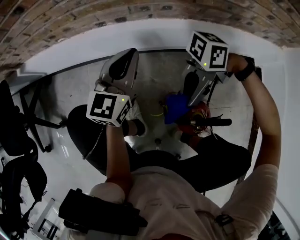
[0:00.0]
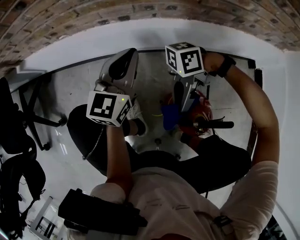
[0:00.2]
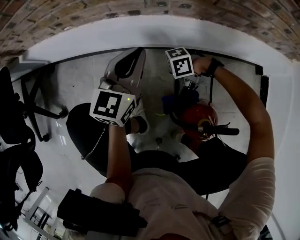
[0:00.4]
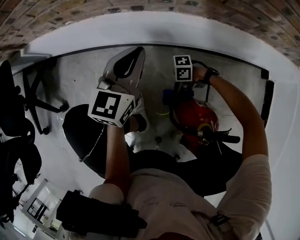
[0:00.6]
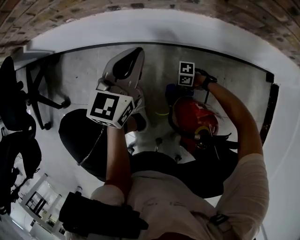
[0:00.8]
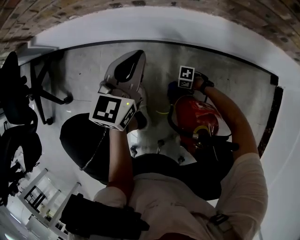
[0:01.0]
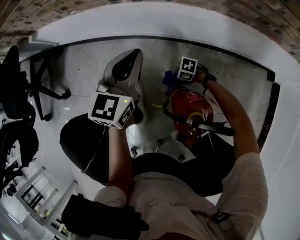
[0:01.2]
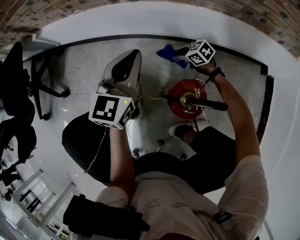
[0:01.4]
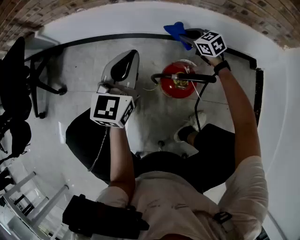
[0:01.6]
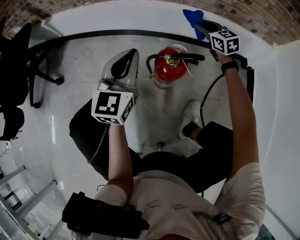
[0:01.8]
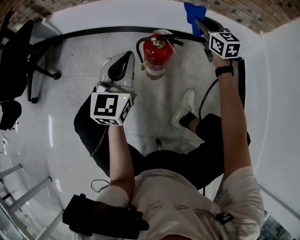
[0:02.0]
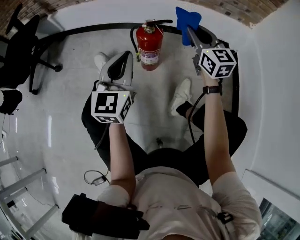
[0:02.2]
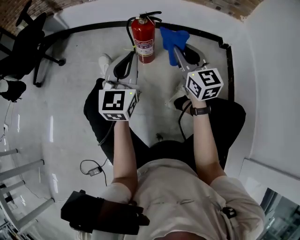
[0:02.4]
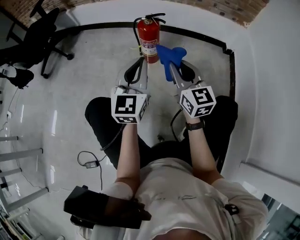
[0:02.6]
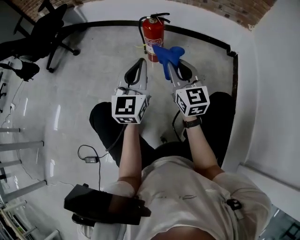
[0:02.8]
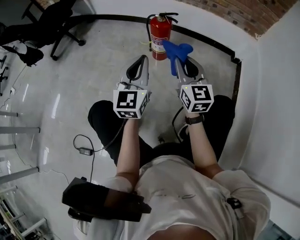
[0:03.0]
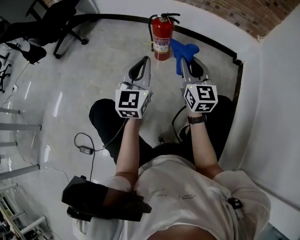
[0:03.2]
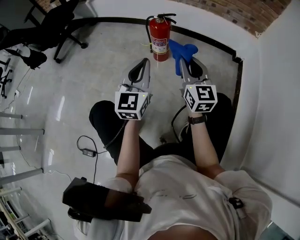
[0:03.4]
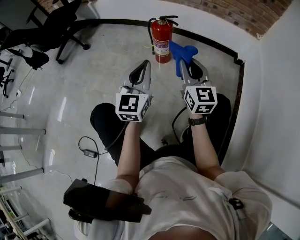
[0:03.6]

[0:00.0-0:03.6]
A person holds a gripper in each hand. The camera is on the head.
0:00.0 to 0:01.8: The left gripper ends up roughly 25 cm from where it was; the right gripper goes downward and returns, about 50 cm each way, and changes its angle by roughly 100 degrees.
0:01.8 to 0:03.6: The pair of grippers is taken backward, some 50 cm. The right gripper turns by some 30 degrees.

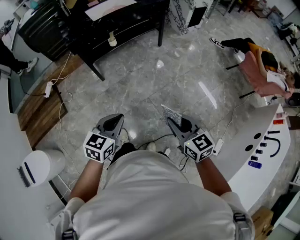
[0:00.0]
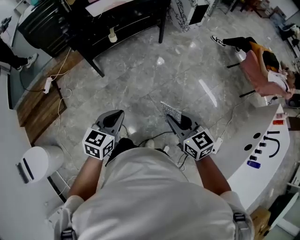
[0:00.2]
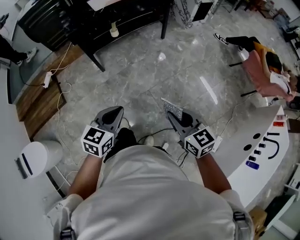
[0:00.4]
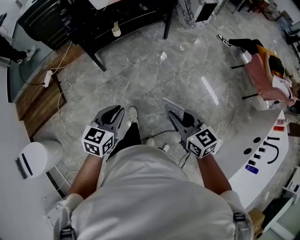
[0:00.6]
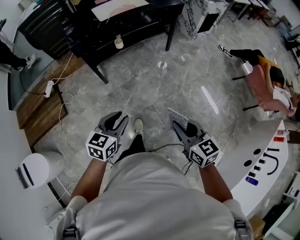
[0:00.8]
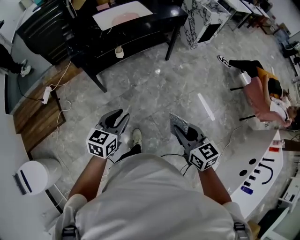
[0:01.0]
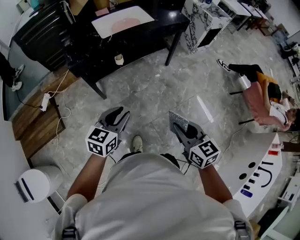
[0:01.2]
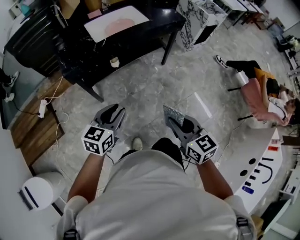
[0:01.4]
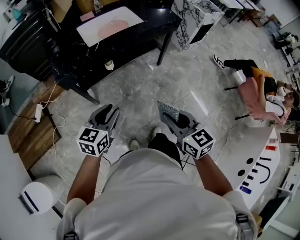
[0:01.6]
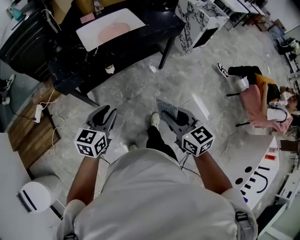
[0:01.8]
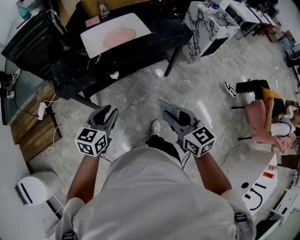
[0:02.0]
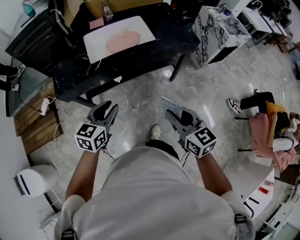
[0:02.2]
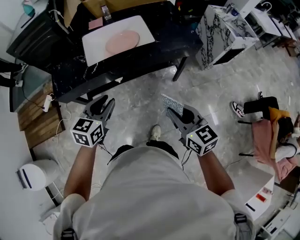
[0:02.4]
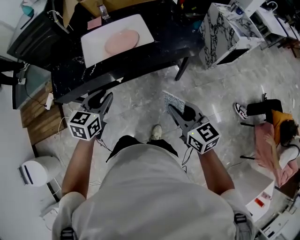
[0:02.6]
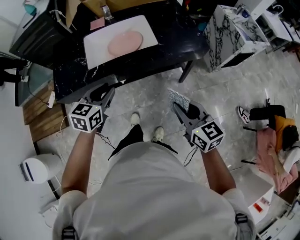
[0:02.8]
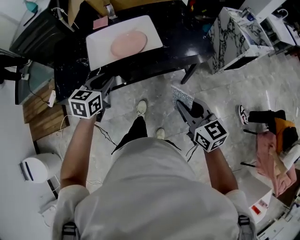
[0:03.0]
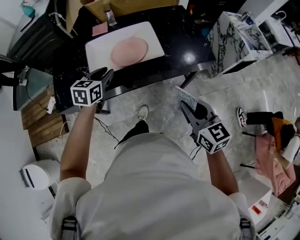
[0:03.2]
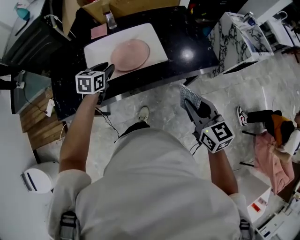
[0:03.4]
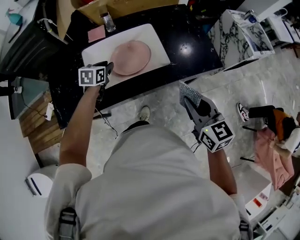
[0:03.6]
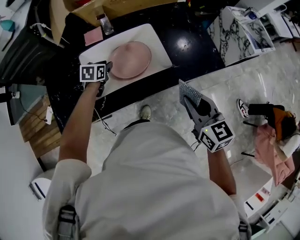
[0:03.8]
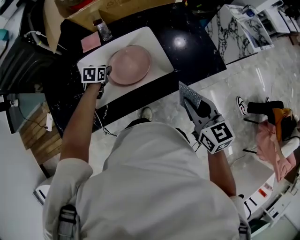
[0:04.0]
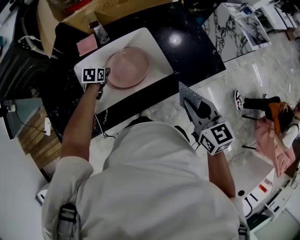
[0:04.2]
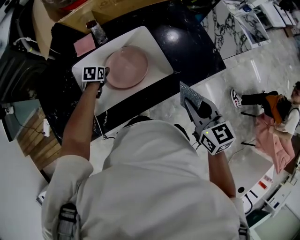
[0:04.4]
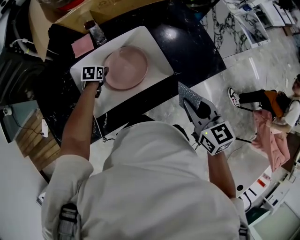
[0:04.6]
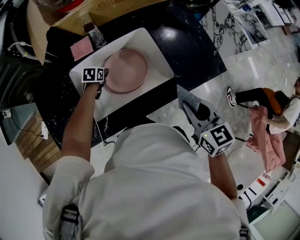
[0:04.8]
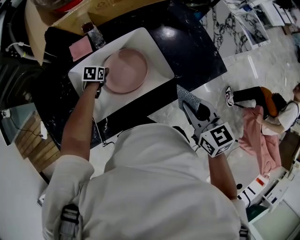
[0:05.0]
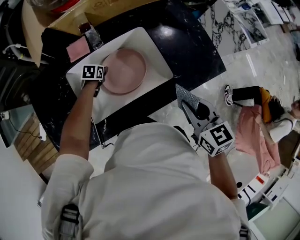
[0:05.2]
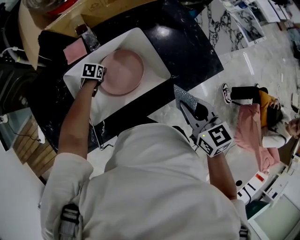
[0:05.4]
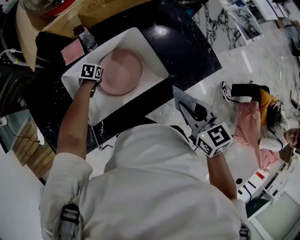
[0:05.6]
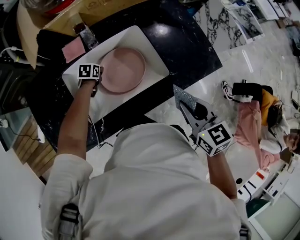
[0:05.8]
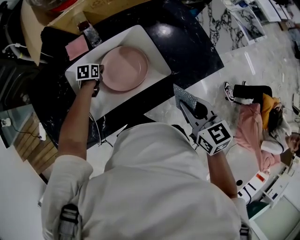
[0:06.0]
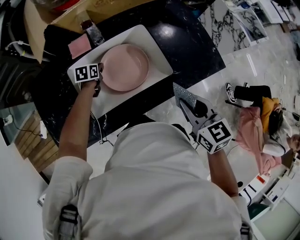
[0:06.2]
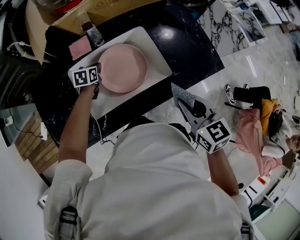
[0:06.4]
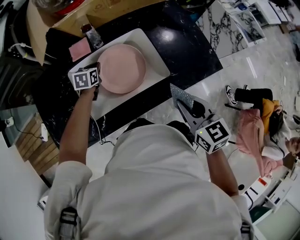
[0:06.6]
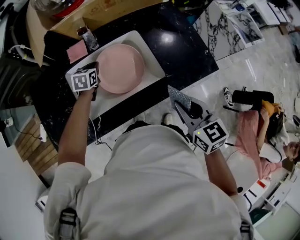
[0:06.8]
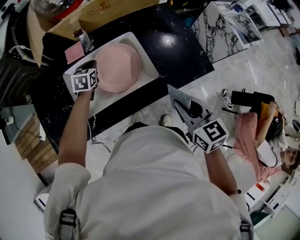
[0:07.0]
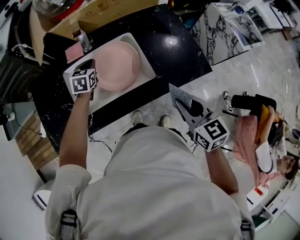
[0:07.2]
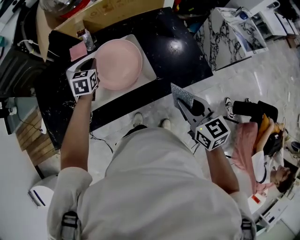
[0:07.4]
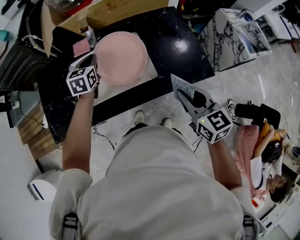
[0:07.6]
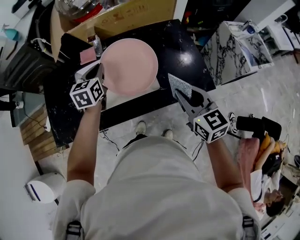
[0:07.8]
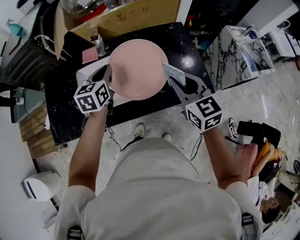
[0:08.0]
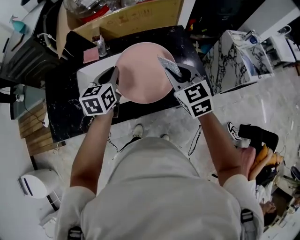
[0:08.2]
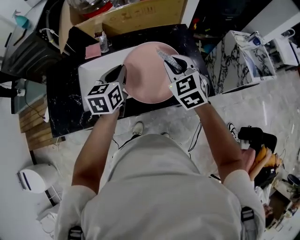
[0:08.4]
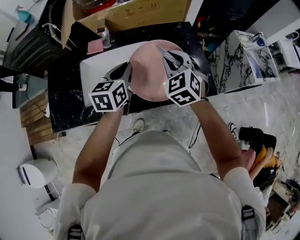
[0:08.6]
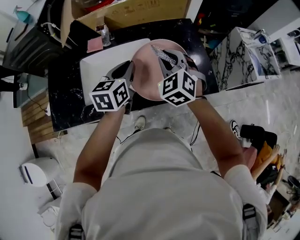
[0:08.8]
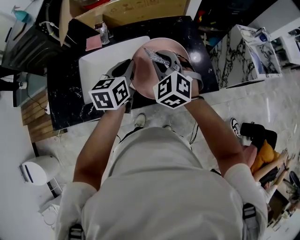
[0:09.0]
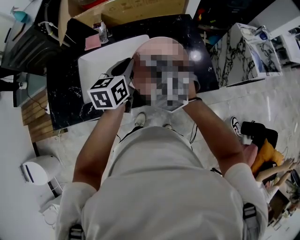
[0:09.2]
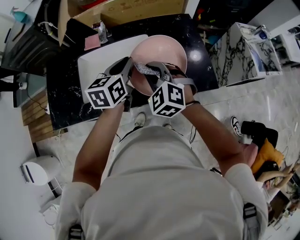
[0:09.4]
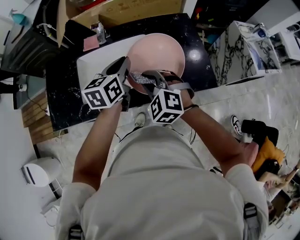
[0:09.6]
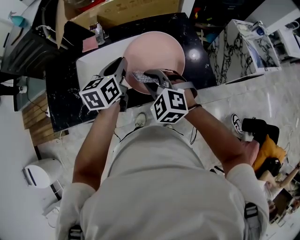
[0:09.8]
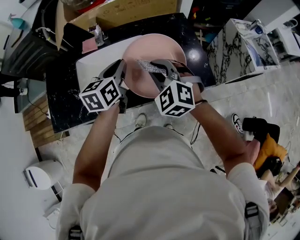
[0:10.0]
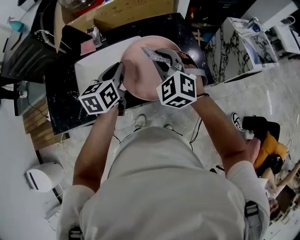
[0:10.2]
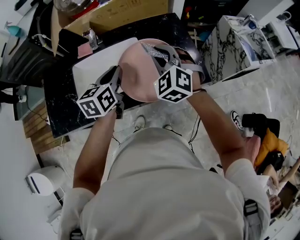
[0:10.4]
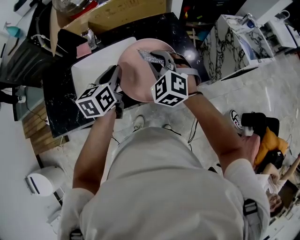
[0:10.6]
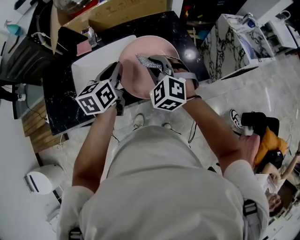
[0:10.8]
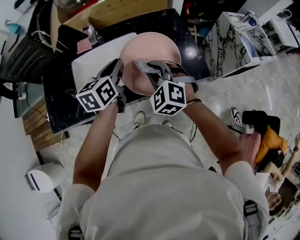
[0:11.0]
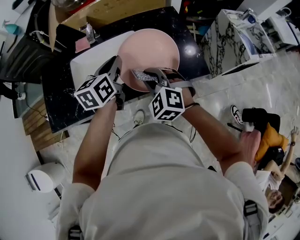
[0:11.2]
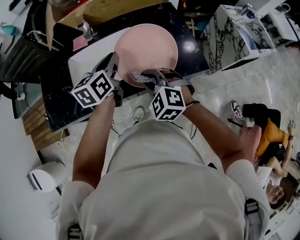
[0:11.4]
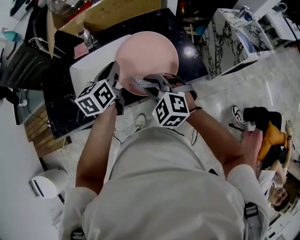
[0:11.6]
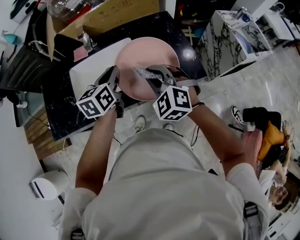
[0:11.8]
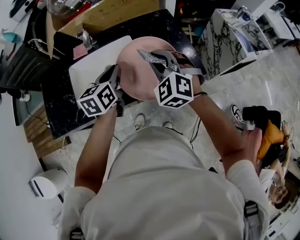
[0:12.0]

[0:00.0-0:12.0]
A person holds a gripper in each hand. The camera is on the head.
0:00.0 to 0:01.6: The two grippers go roughly 40 cm forward. The left gripper opens its fingers.
0:01.6 to 0:03.0: The left gripper heads forward, covering some 35 cm, and changes its angle by roughly 20 degrees, while the right gripper travels forward and to the right by approximately 40 cm.
0:03.0 to 0:04.4: The left gripper shifts approximately 40 cm forward and downward, and swivels approximately 30 degrees. Meanwhile the right gripper is displaced forward by some 20 cm.
0:04.4 to 0:06.0: The left gripper closes.
0:06.0 to 0:07.6: The left gripper goes approximately 25 cm upward, and turns by some 40 degrees. Meanwhile the right gripper moves some 10 cm.
0:07.6 to 0:09.0: The right gripper moves forward and to the left, about 15 cm, and rotates around the line of its fingers by roughly 50 degrees, counterclockwise from behind. The left gripper moves to the right, backward and upward, roughly 15 cm.

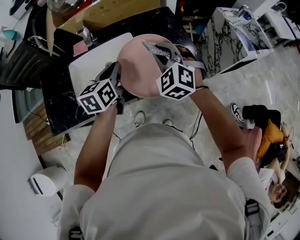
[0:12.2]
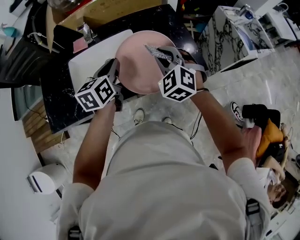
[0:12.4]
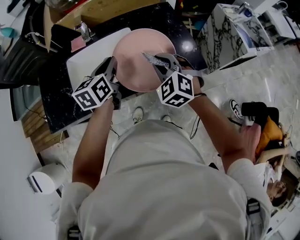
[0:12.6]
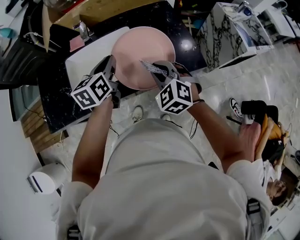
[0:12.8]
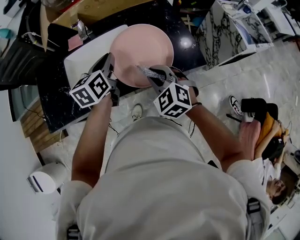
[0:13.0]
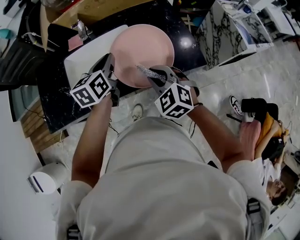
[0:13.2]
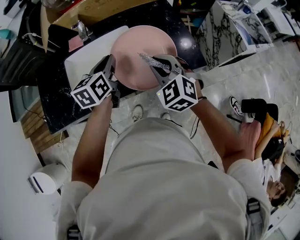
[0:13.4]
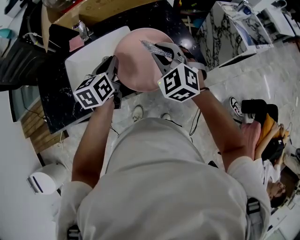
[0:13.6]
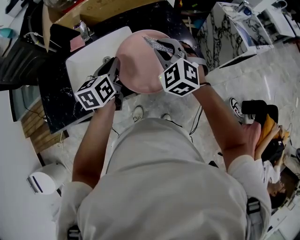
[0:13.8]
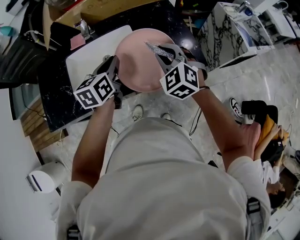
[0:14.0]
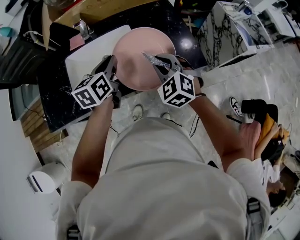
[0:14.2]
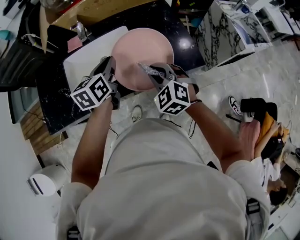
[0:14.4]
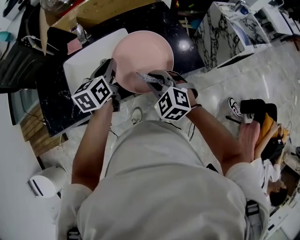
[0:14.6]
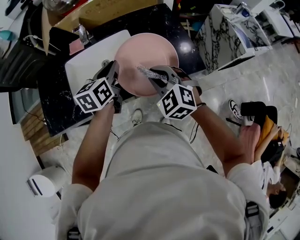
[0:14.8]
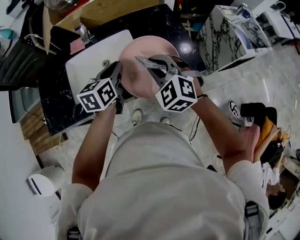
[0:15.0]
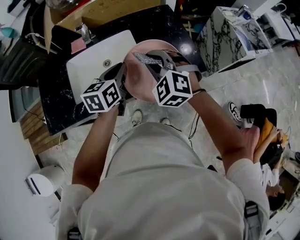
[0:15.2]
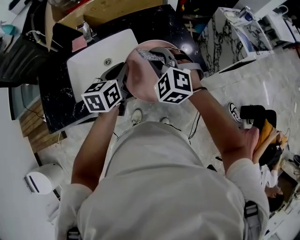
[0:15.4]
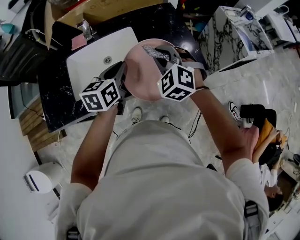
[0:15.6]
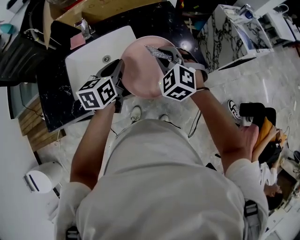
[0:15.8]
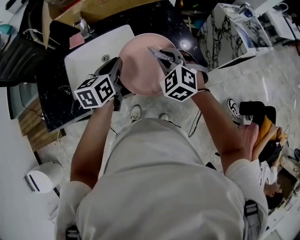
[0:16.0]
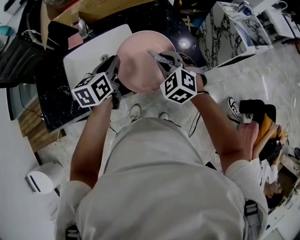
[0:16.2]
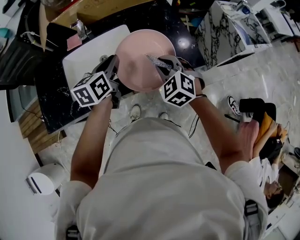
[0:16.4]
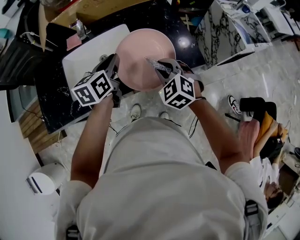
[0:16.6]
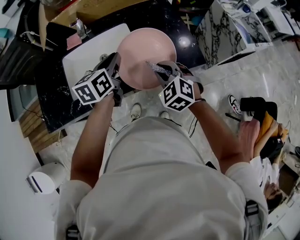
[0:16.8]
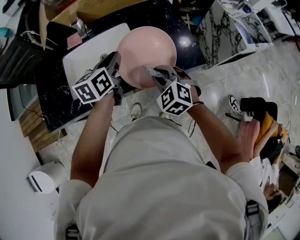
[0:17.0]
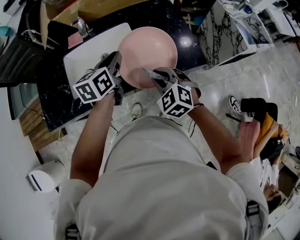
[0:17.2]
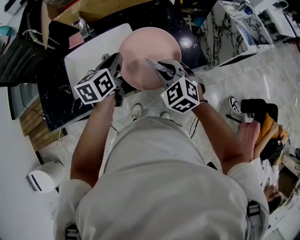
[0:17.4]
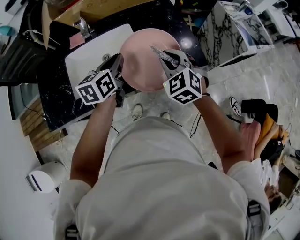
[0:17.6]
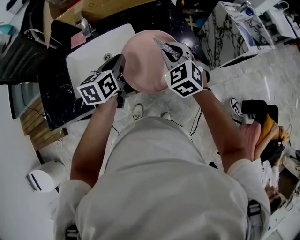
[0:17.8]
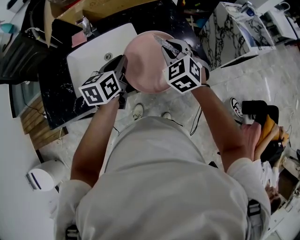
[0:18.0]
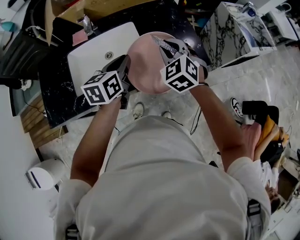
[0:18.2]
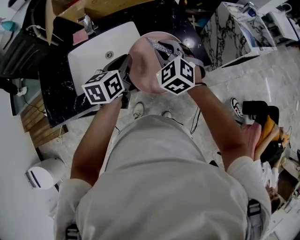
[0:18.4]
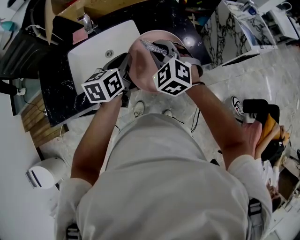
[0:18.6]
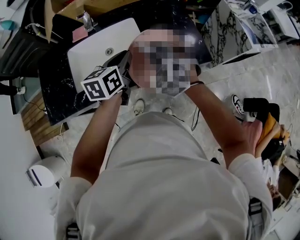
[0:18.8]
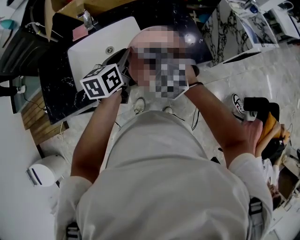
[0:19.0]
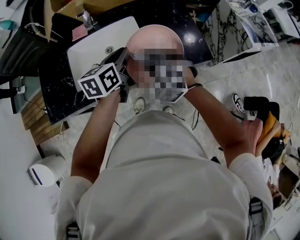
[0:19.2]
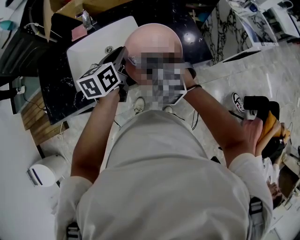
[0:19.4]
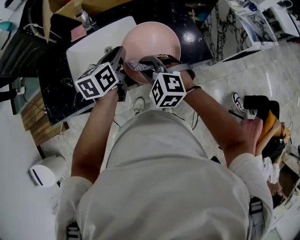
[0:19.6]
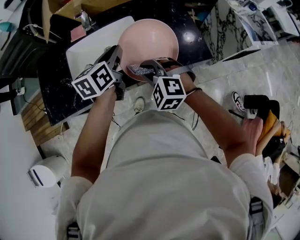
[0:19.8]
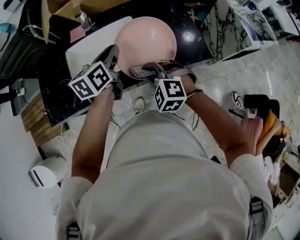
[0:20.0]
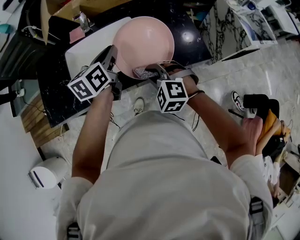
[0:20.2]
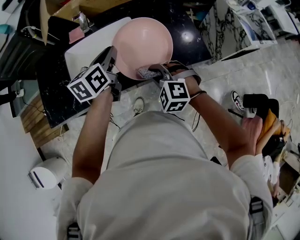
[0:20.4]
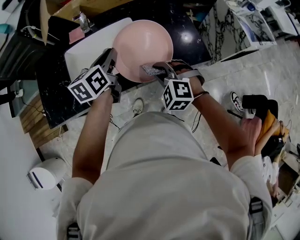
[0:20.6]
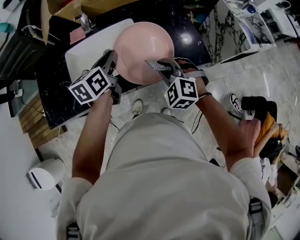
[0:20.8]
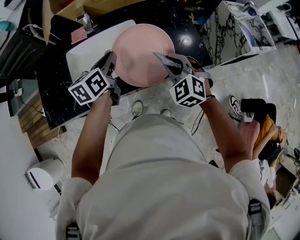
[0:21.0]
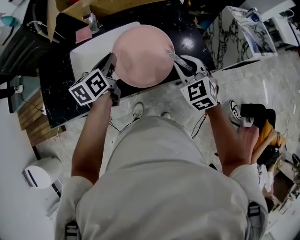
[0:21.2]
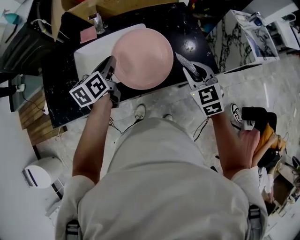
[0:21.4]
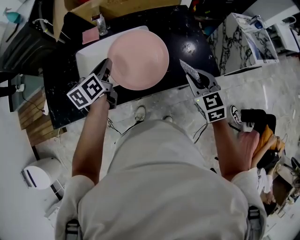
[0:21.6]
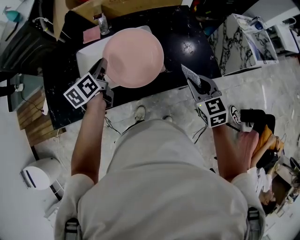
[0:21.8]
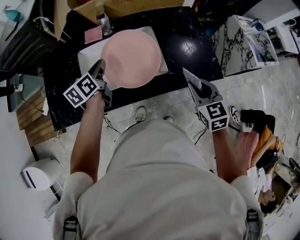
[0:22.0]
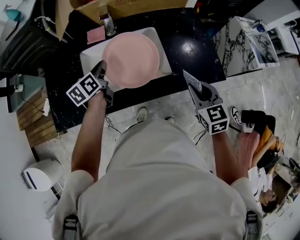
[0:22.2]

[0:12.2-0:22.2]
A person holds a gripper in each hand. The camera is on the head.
0:12.2 to 0:13.6: The right gripper travels backward and back again, approximately 10 cm each way.
0:13.6 to 0:15.0: The right gripper moves roughly 5 cm backward and comes back.
0:15.0 to 0:16.4: The right gripper heads downward, covering some 5 cm.
0:16.4 to 0:18.0: The right gripper is displaced forward by approximately 5 cm.
0:18.0 to 0:19.4: The right gripper travels to the left and backward by about 15 cm, and changes its angle by some 30 degrees.
0:19.4 to 0:20.8: The right gripper is displaced to the right by roughly 5 cm.
0:20.8 to 0:22.2: The left gripper goes roughly 15 cm to the left. Meanwhile the right gripper twists some 50 degrees clockwise, seen from behind.
